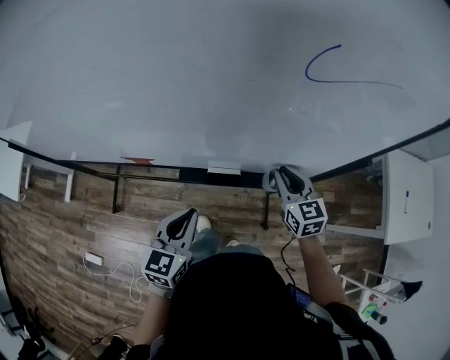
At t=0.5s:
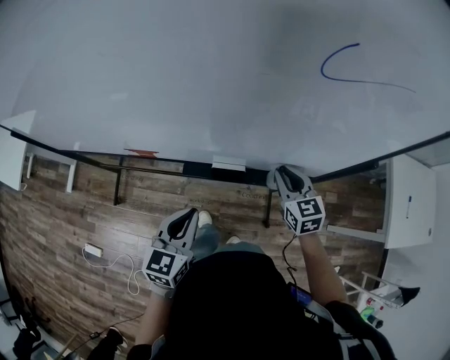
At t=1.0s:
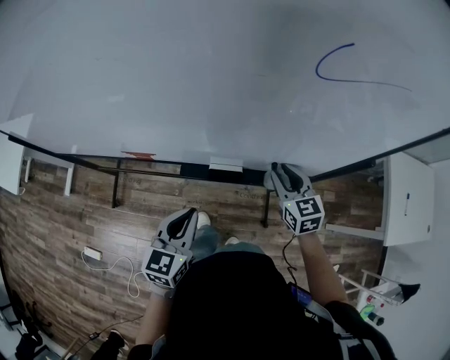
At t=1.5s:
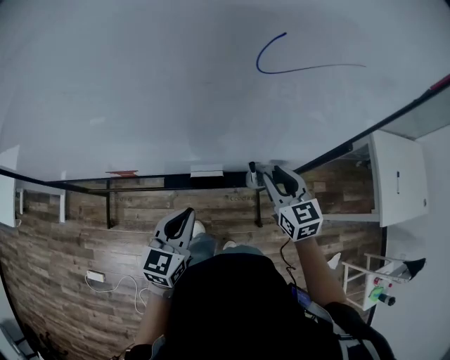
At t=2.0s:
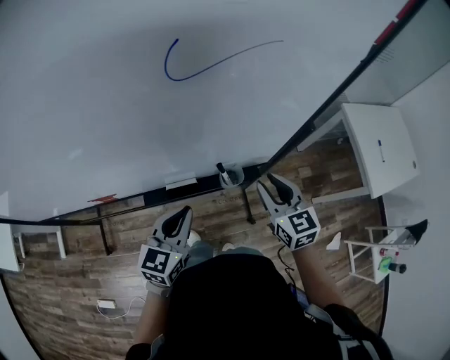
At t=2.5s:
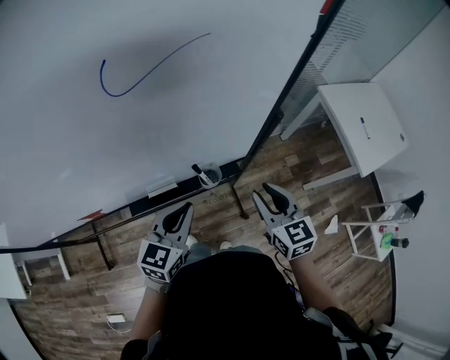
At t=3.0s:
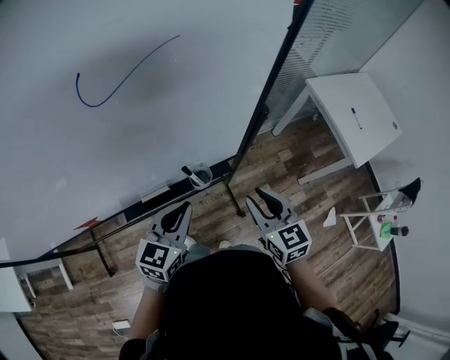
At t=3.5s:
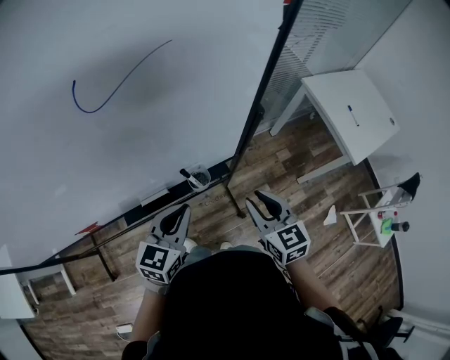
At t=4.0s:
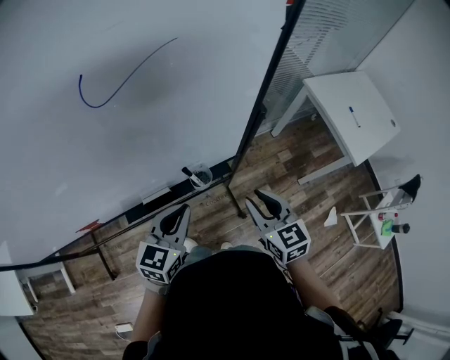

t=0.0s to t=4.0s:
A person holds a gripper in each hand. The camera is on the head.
t=0.0s to t=2.0s: The left gripper heads to the right, covering about 10 cm. Meanwhile the right gripper moves to the right, backward and upward, roughly 10 cm.
t=2.0s to t=4.0s: The right gripper travels backward and to the right by roughly 10 cm; the left gripper travels to the right by roughly 5 cm.

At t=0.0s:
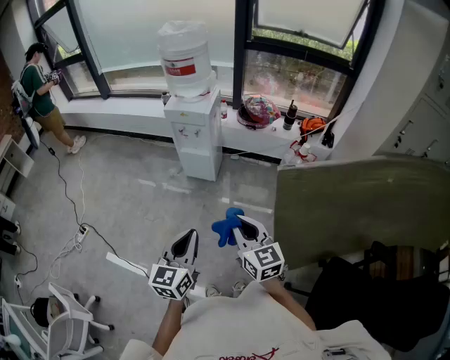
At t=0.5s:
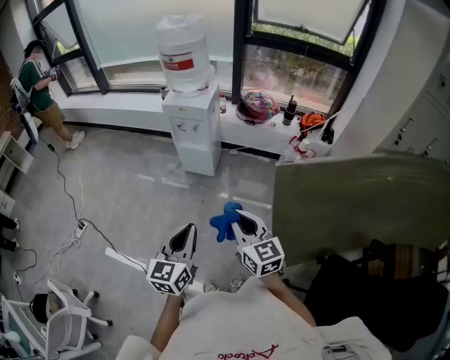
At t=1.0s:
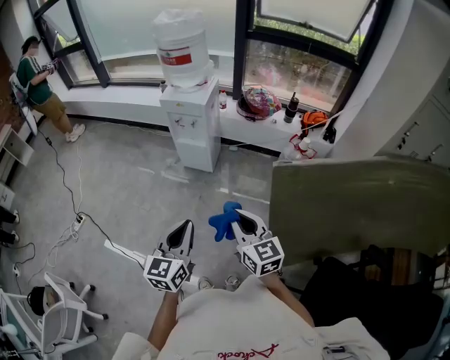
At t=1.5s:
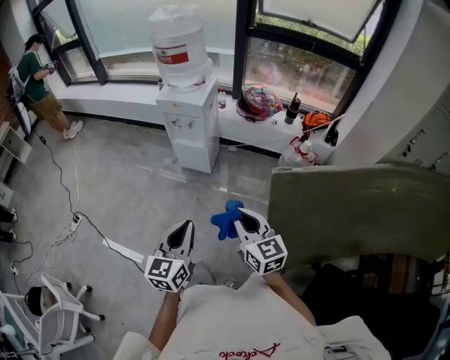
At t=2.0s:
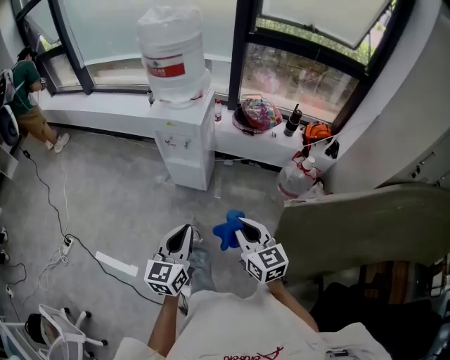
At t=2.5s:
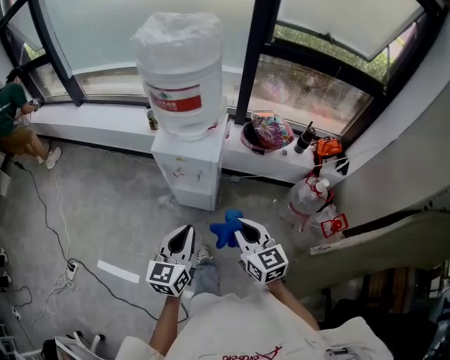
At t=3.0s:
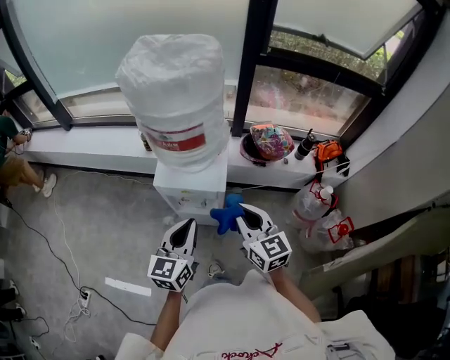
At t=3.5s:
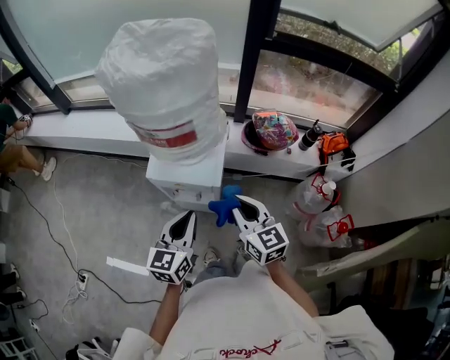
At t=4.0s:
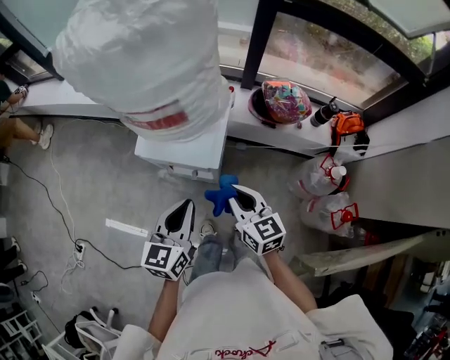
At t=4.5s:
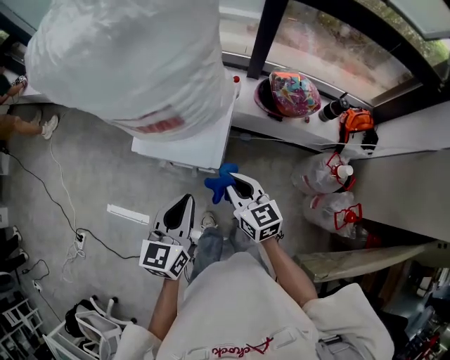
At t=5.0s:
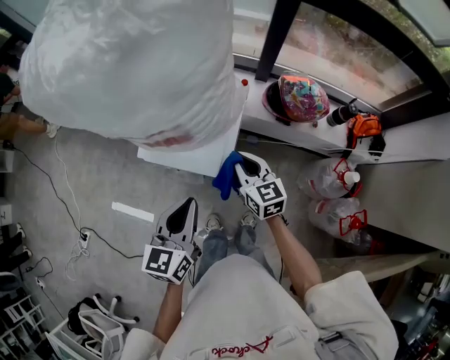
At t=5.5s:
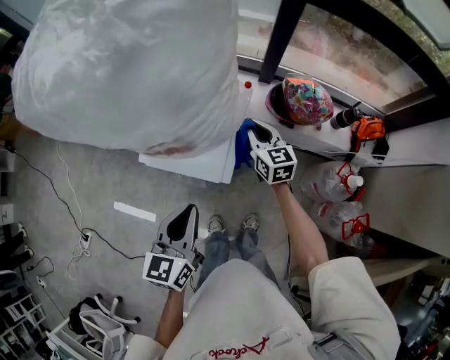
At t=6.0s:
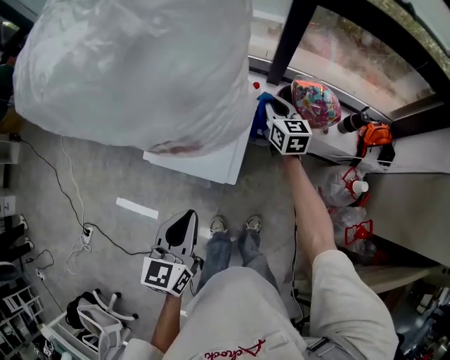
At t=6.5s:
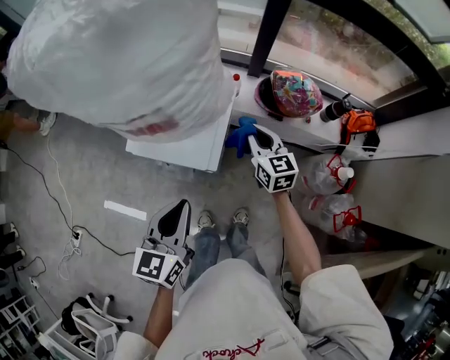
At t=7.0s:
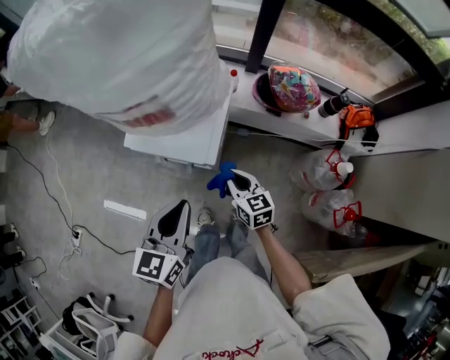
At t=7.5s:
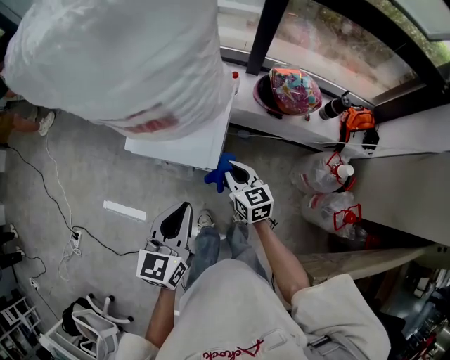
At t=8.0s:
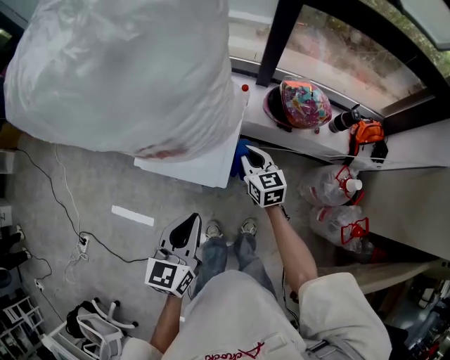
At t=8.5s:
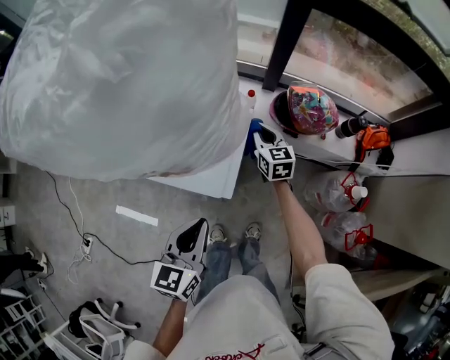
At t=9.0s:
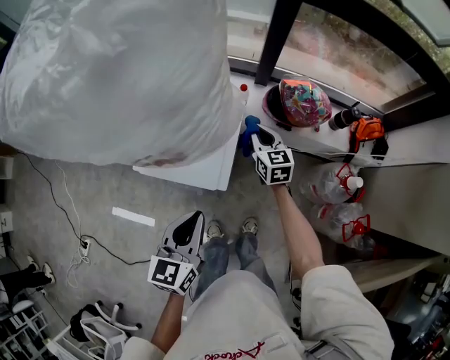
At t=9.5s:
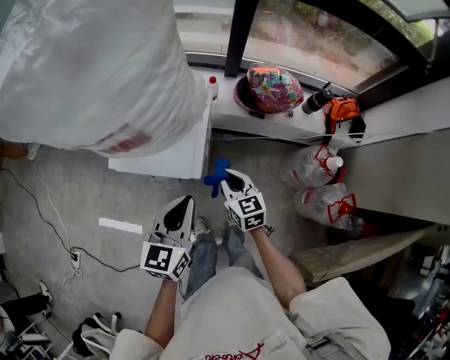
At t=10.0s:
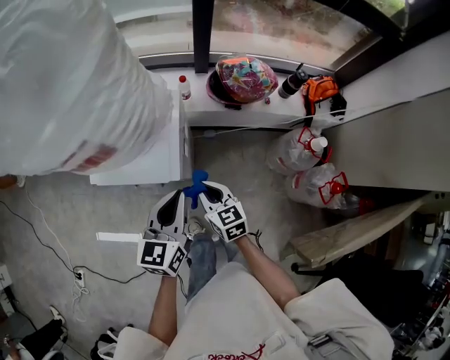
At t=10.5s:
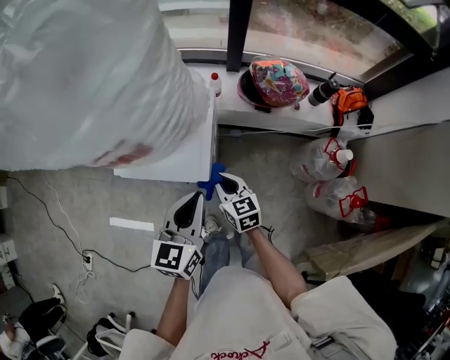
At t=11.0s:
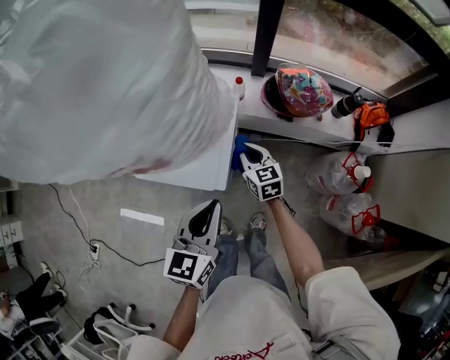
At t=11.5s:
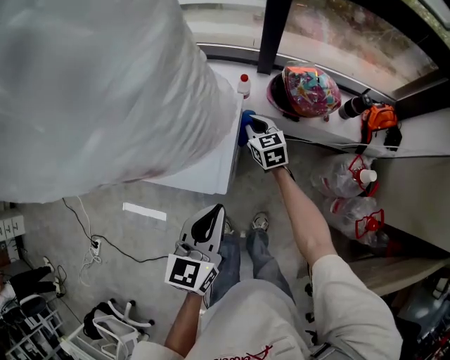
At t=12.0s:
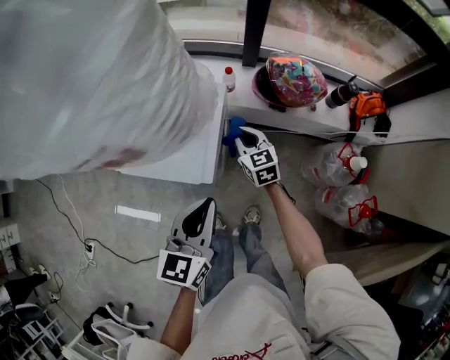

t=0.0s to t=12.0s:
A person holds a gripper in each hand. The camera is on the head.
t=0.0s to t=2.0s: Both grippers move forward, some 20 cm.
t=2.0s to t=4.0s: The two grippers go approximately 40 cm forward.
t=4.0s to t=6.0s: The right gripper goes about 35 cm forward.
t=6.0s to t=8.0s: The right gripper is displaced backward and downward by roughly 15 cm.
t=8.0s to t=10.0s: The left gripper moves to the right, about 5 cm. Meanwhile the right gripper travels backward by some 15 cm.
t=10.0s to t=12.0s: The right gripper goes roughly 20 cm forward.

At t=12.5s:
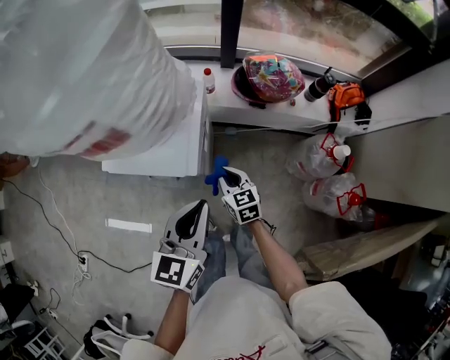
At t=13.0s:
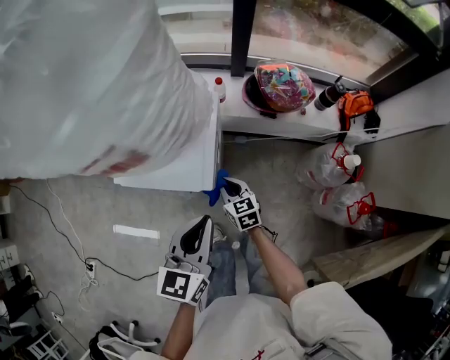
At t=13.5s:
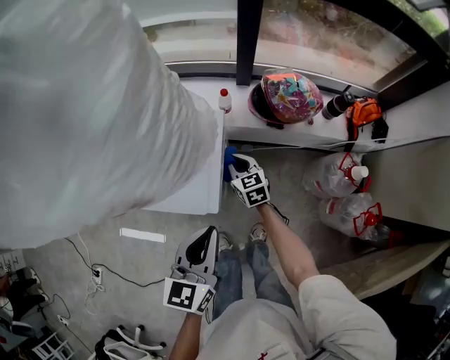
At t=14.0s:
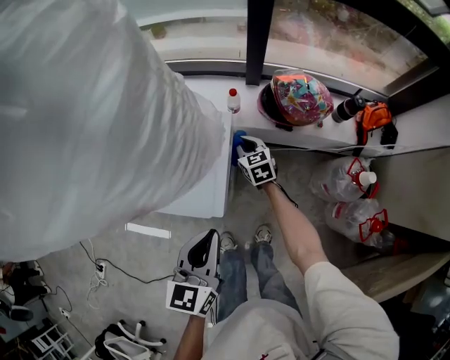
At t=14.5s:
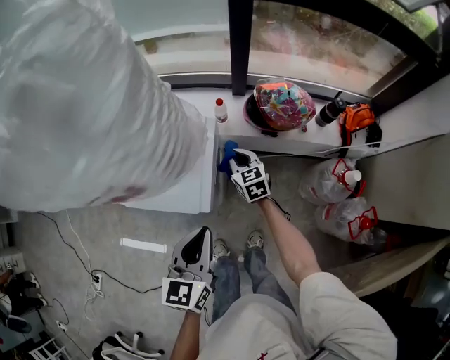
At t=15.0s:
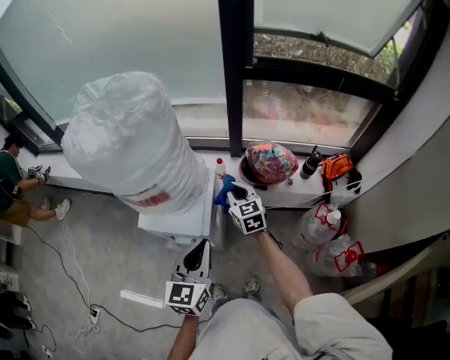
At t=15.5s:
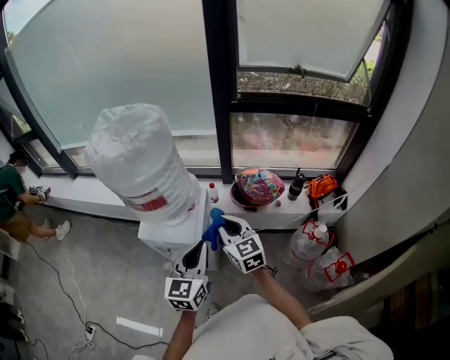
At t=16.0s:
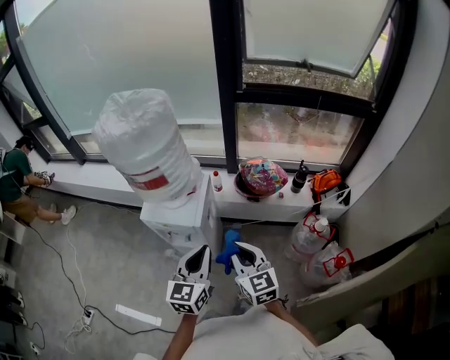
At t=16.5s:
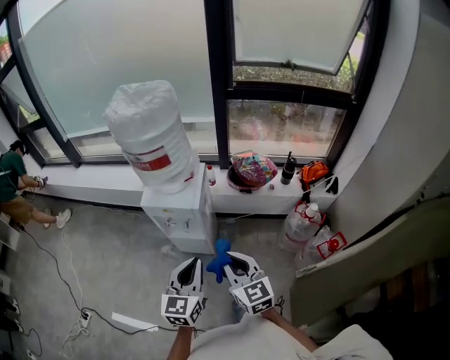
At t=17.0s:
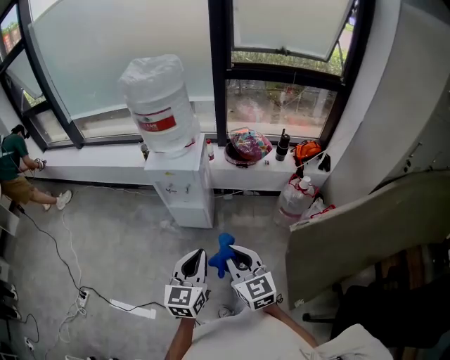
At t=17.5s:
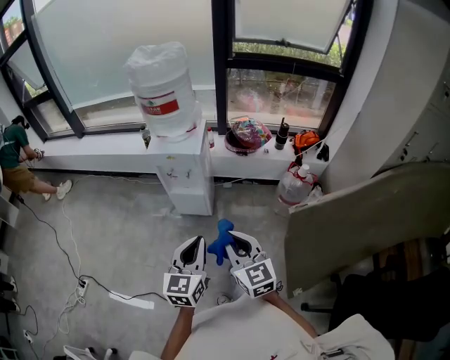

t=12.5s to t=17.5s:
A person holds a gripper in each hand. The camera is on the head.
t=12.5s to t=15.0s: The left gripper shifts approximately 10 cm upward; the right gripper shifts some 25 cm upward and forward.
t=15.0s to t=17.5s: The pair of grippers is taken backward, roughly 50 cm.

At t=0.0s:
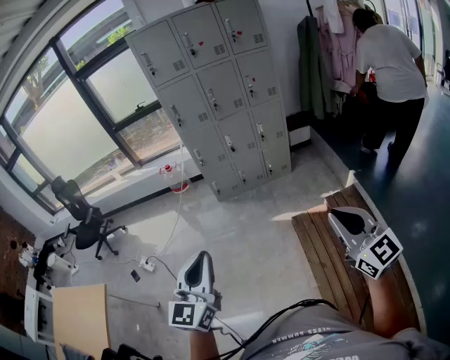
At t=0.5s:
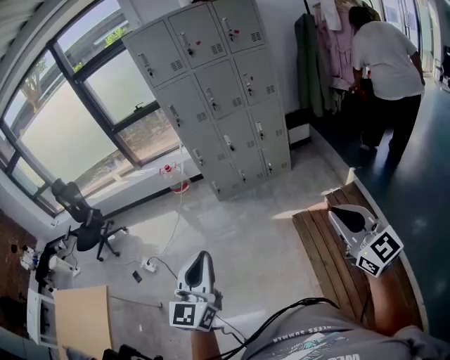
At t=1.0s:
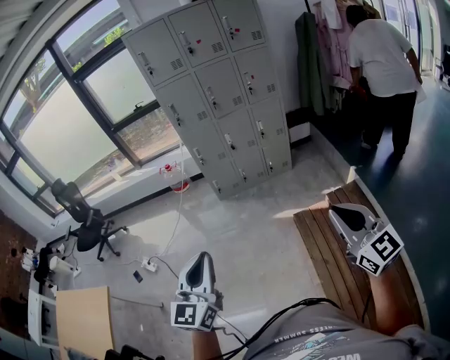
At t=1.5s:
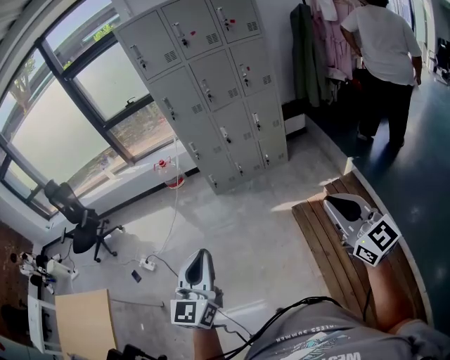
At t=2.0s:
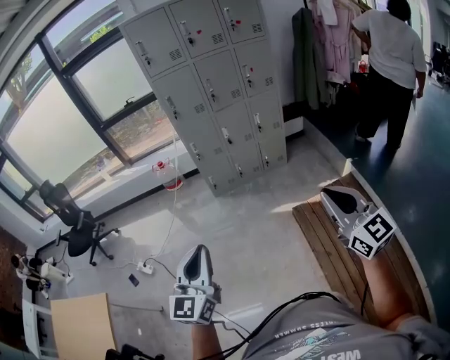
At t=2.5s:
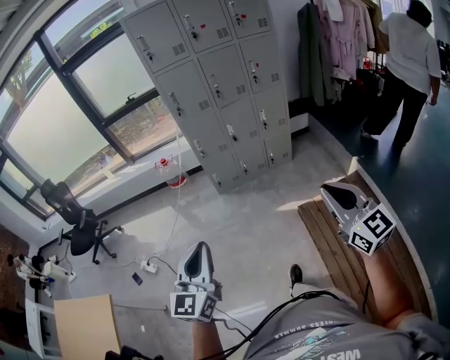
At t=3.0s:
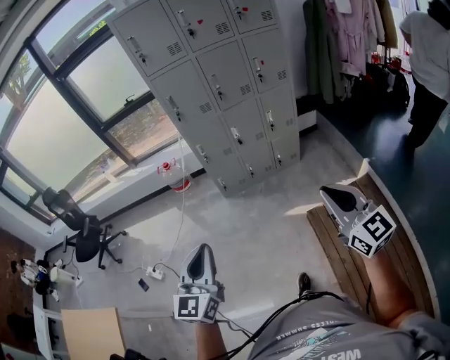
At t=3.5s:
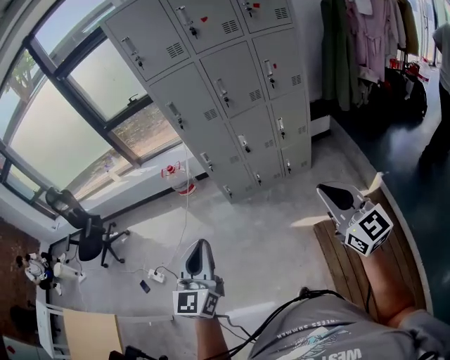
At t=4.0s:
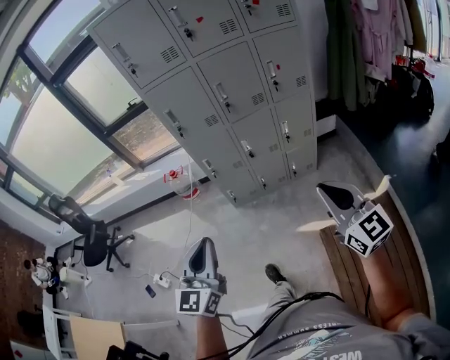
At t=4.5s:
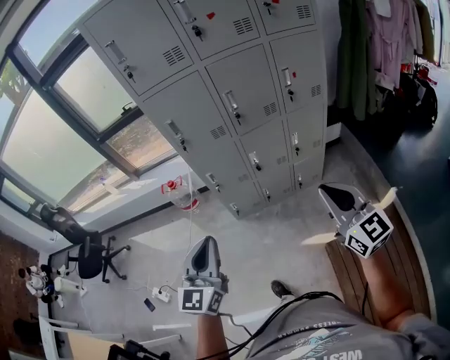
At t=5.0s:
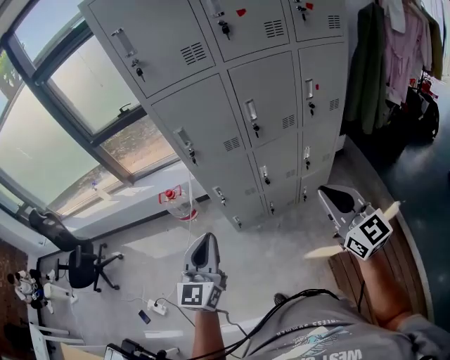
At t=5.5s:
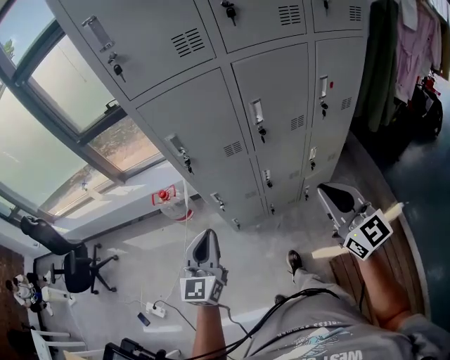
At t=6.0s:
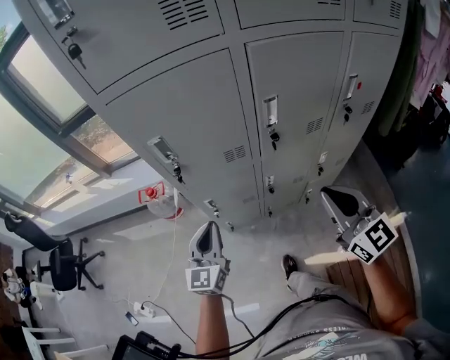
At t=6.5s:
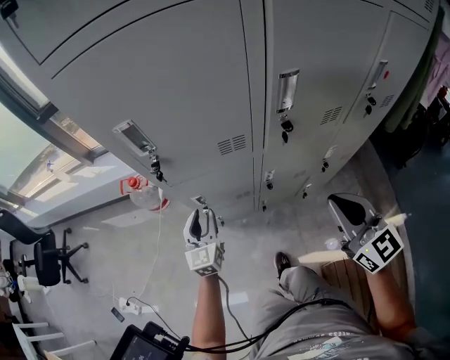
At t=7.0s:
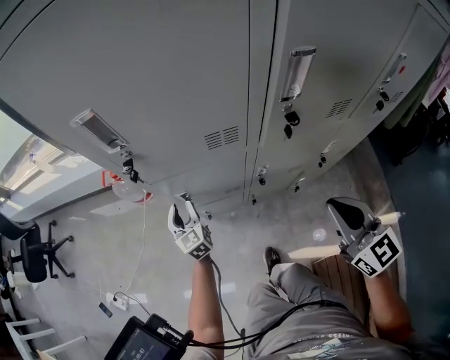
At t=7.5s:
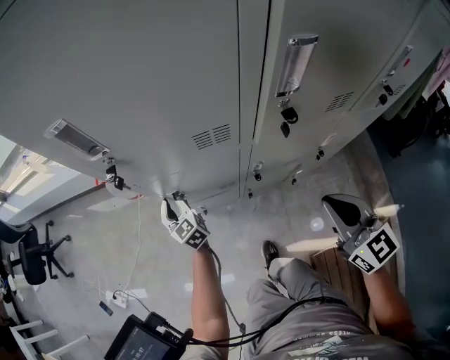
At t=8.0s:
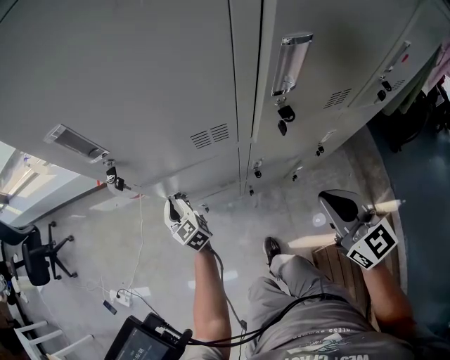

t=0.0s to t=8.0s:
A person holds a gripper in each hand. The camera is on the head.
t=0.0s to t=2.0s: Both grippers travel together to the left and forward, about 10 cm.
t=2.0s to t=4.0s: The two grippers go some 35 cm forward.
t=4.0s to t=6.0s: The pair of grippers is taken forward, some 50 cm.
t=6.0s to t=8.0s: The left gripper is displaced downward and forward by about 35 cm, changes its angle by approximately 40 degrees, and opens; the right gripper heads downward, covering roughly 20 cm.
